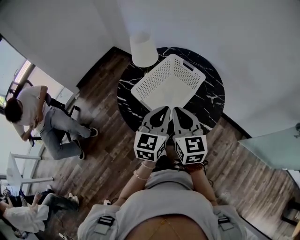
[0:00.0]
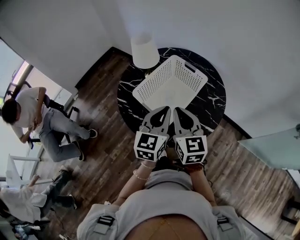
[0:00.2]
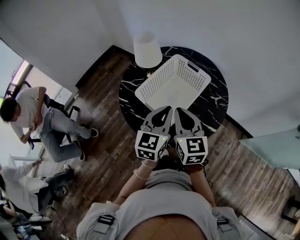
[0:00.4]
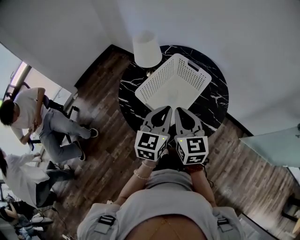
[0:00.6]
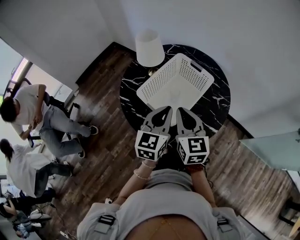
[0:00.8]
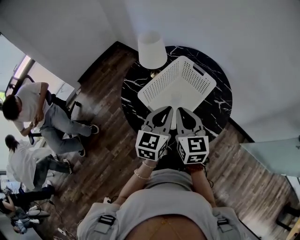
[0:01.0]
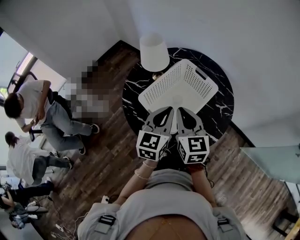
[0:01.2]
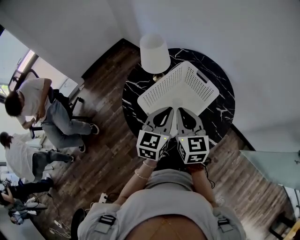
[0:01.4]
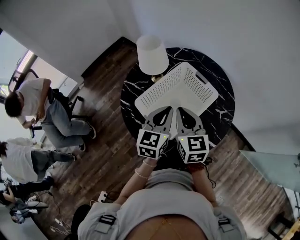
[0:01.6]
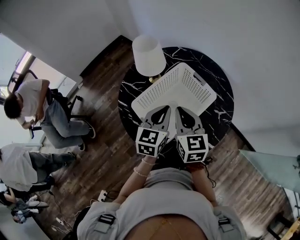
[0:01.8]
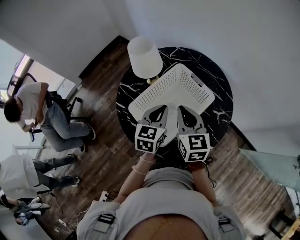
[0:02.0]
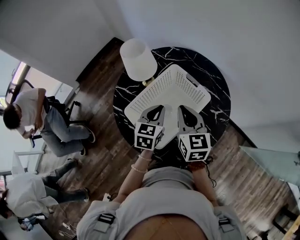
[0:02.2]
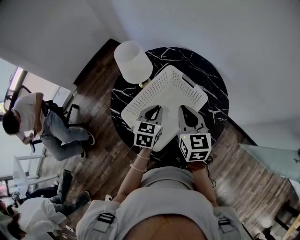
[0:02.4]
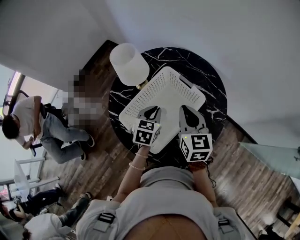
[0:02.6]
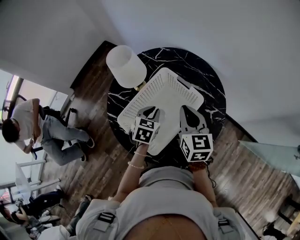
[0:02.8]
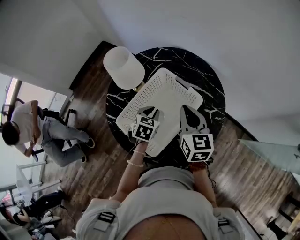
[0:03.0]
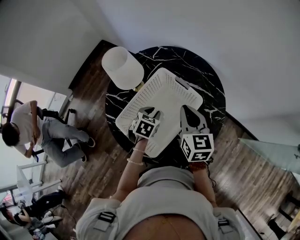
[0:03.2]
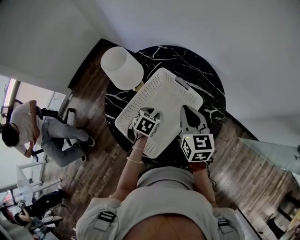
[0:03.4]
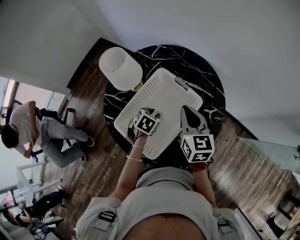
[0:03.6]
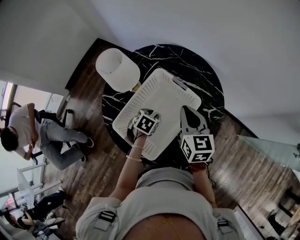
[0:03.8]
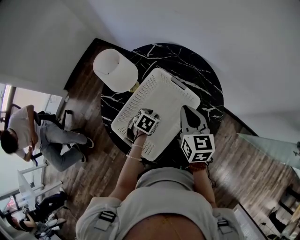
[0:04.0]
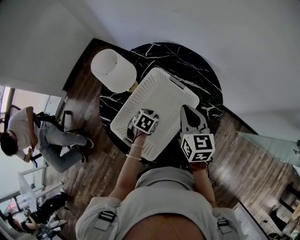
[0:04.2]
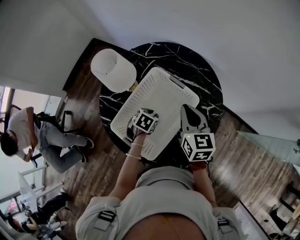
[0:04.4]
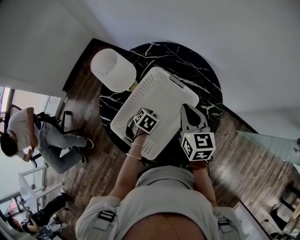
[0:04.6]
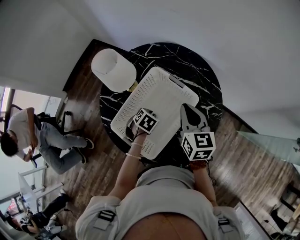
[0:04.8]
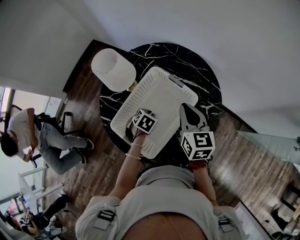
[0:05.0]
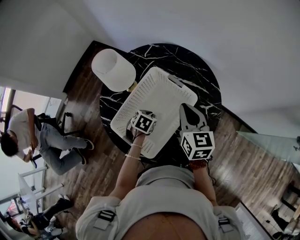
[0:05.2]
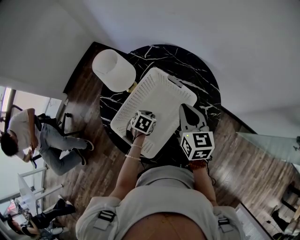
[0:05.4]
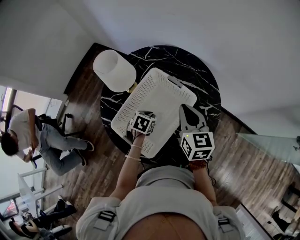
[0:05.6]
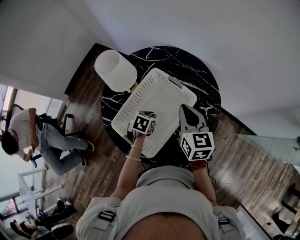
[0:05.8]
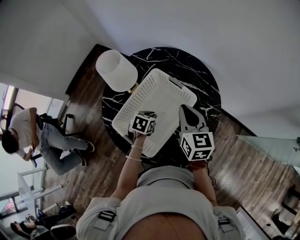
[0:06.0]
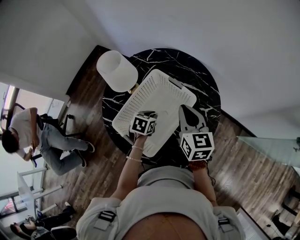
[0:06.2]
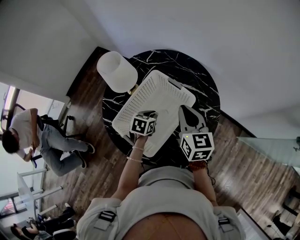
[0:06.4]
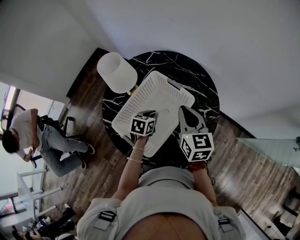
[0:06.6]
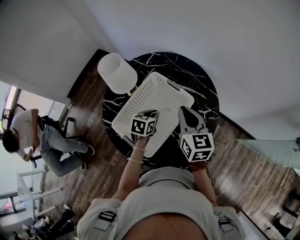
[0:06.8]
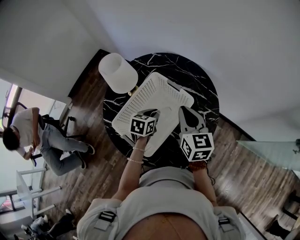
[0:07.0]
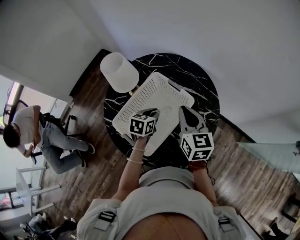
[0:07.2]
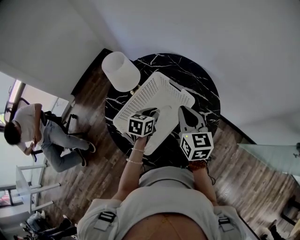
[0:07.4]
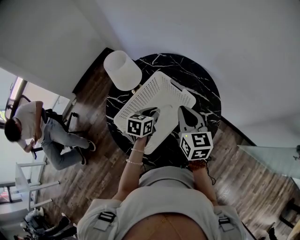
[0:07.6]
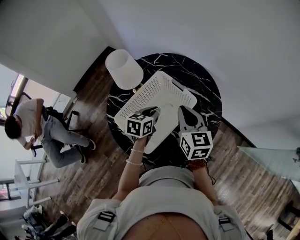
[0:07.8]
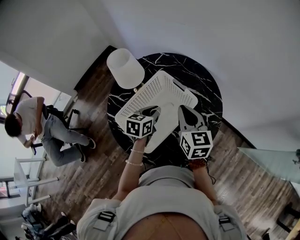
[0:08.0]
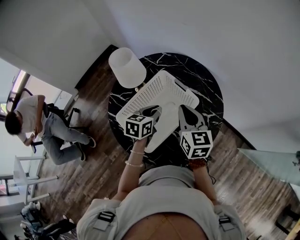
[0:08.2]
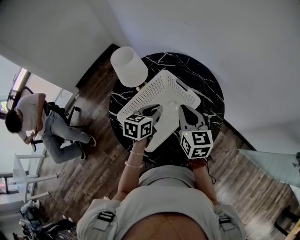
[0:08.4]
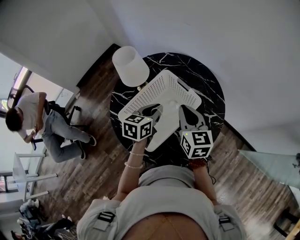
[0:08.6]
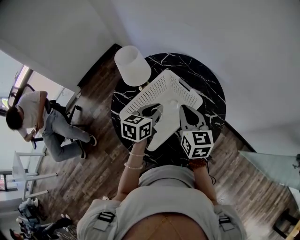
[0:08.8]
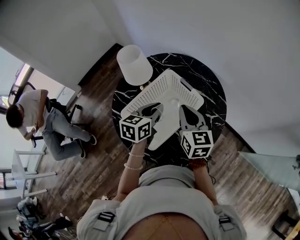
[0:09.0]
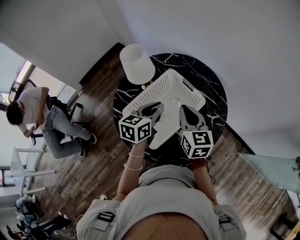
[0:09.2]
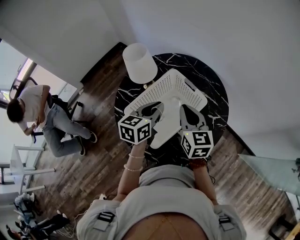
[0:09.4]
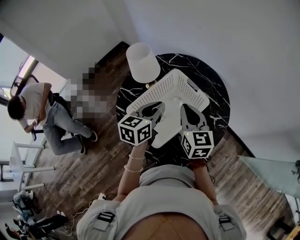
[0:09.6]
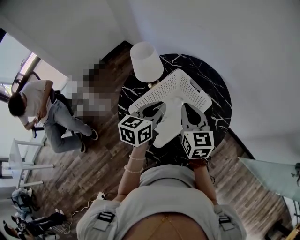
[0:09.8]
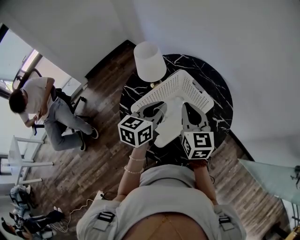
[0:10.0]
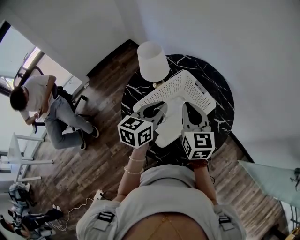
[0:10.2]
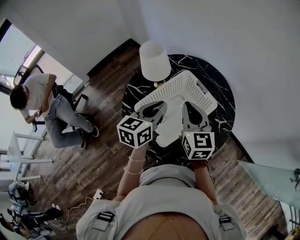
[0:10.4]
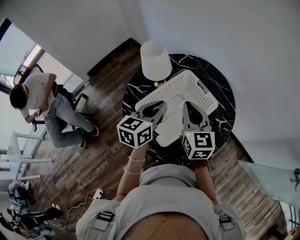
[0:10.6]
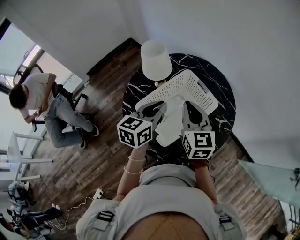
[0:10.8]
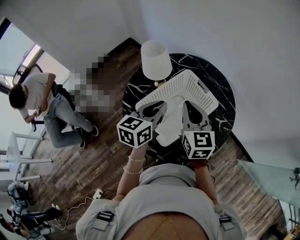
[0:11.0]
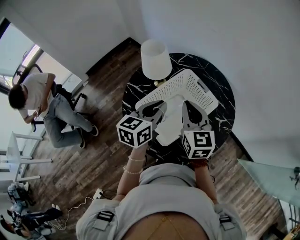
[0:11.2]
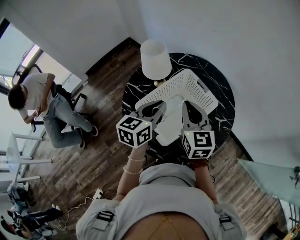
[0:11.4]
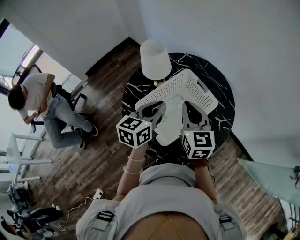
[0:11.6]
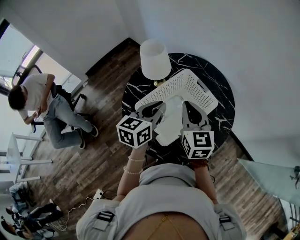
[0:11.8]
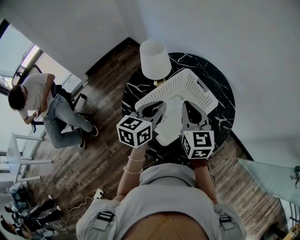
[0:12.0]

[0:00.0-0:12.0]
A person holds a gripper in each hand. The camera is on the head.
0:00.0 to 0:01.6: The grippers both shift forward by roughly 10 cm.
0:01.6 to 0:03.0: The right gripper shifts approximately 15 cm to the right and forward; the left gripper shifts approximately 15 cm downward and forward, and tilts its fingers roughly 30 degrees downward.
0:03.0 to 0:04.4: The left gripper travels downward by about 10 cm, and turns by approximately 20 degrees.
0:04.4 to 0:06.0: The grippers make only small movements.
0:06.0 to 0:07.6: The left gripper goes roughly 10 cm upward, and rotates some 20 degrees.
0:07.6 to 0:09.0: The left gripper goes about 10 cm upward.
0:09.0 to 0:10.4: The left gripper goes approximately 10 cm upward and to the left, while the right gripper shifts some 5 cm to the left.
0:10.4 to 0:12.0: Both grippers stay about where they are.

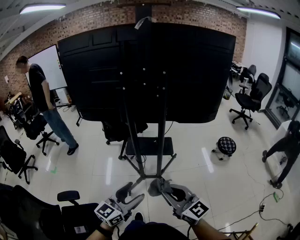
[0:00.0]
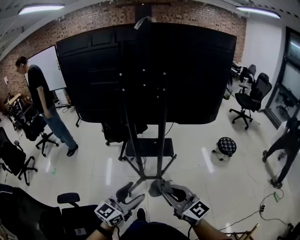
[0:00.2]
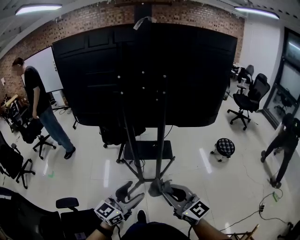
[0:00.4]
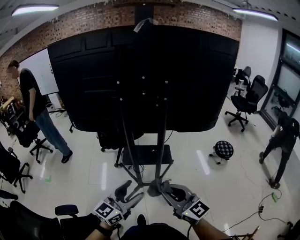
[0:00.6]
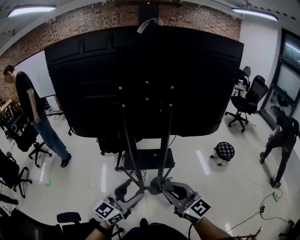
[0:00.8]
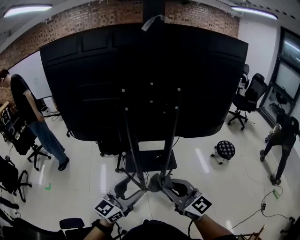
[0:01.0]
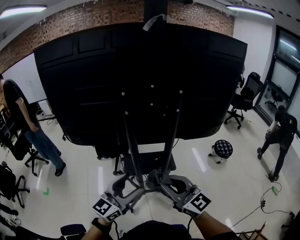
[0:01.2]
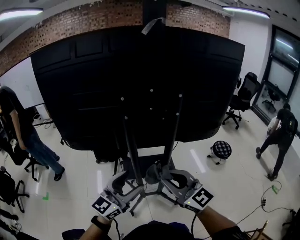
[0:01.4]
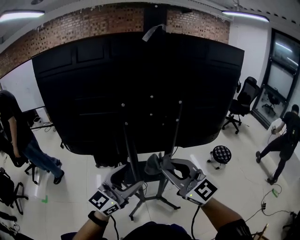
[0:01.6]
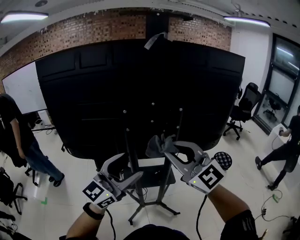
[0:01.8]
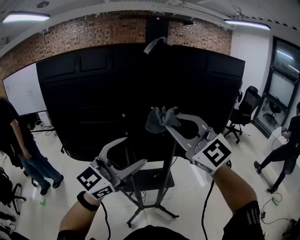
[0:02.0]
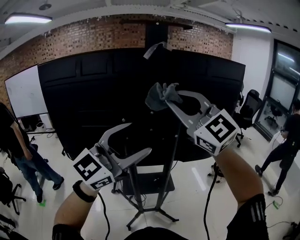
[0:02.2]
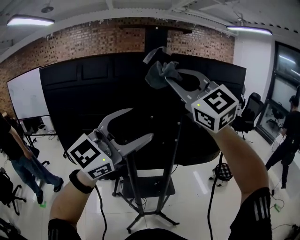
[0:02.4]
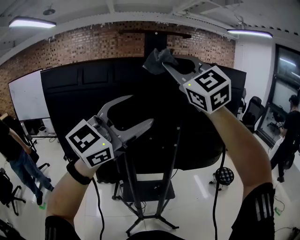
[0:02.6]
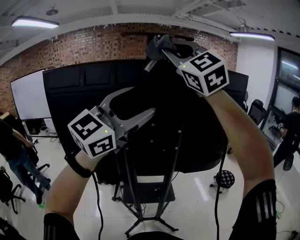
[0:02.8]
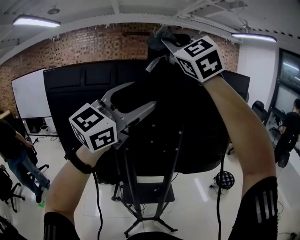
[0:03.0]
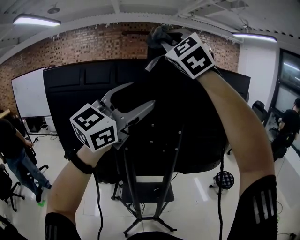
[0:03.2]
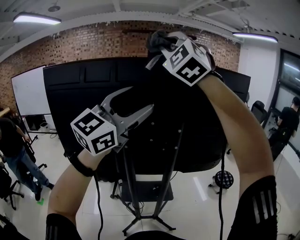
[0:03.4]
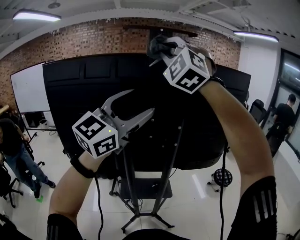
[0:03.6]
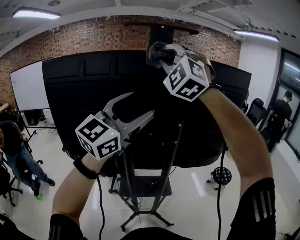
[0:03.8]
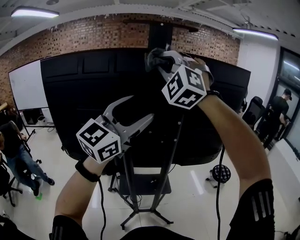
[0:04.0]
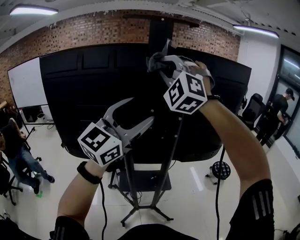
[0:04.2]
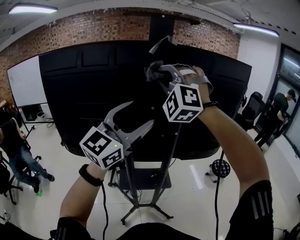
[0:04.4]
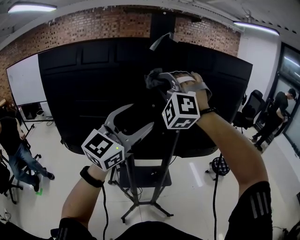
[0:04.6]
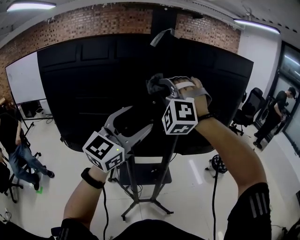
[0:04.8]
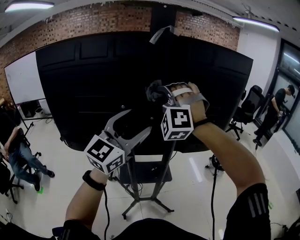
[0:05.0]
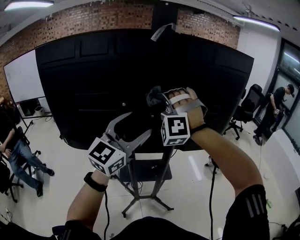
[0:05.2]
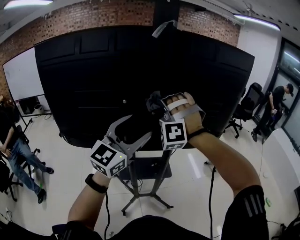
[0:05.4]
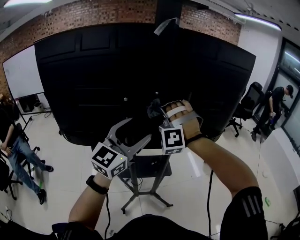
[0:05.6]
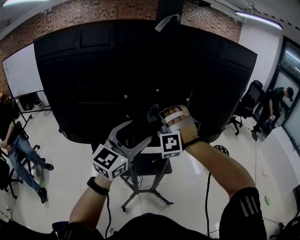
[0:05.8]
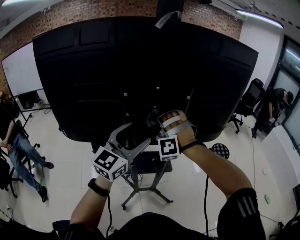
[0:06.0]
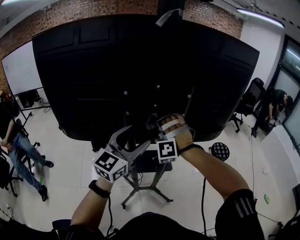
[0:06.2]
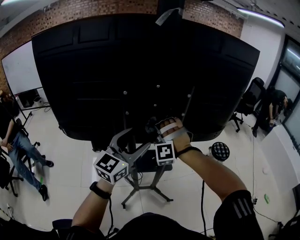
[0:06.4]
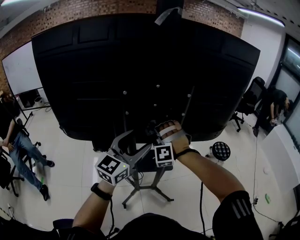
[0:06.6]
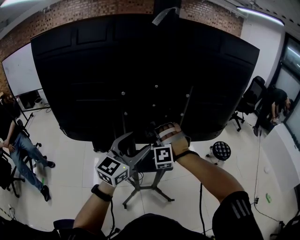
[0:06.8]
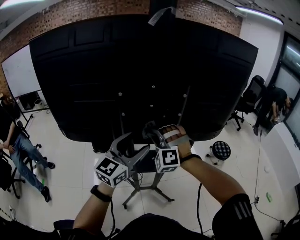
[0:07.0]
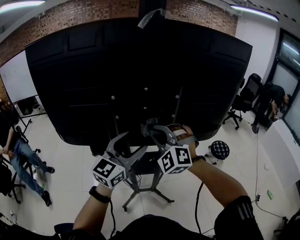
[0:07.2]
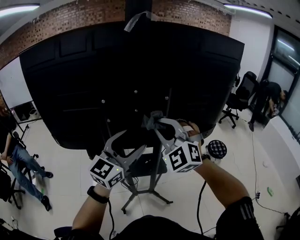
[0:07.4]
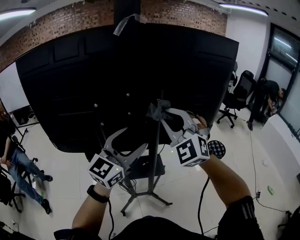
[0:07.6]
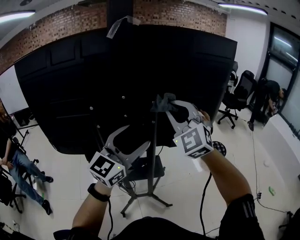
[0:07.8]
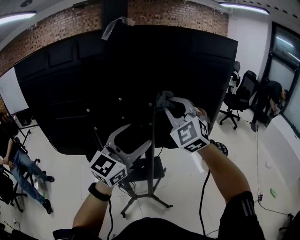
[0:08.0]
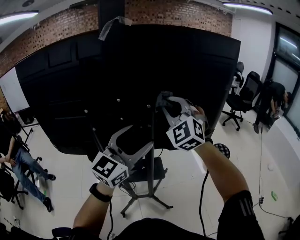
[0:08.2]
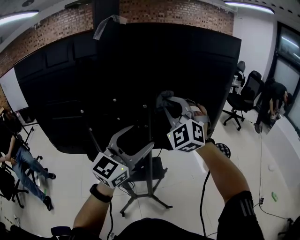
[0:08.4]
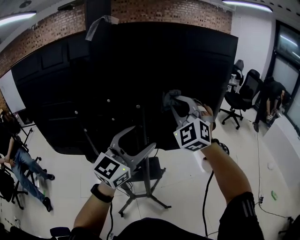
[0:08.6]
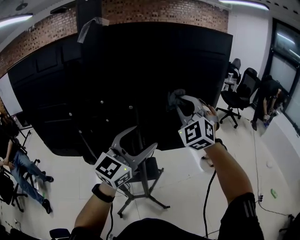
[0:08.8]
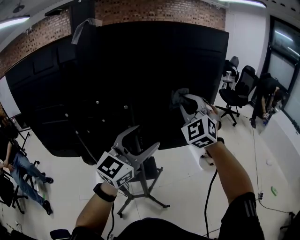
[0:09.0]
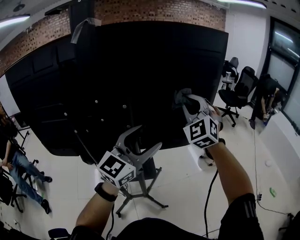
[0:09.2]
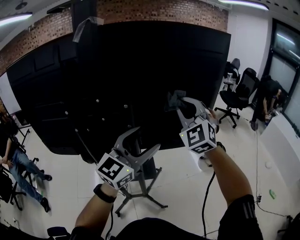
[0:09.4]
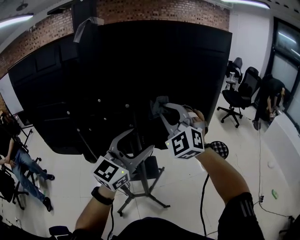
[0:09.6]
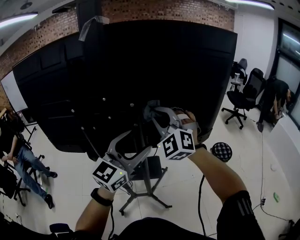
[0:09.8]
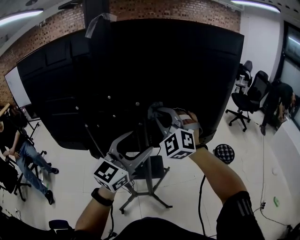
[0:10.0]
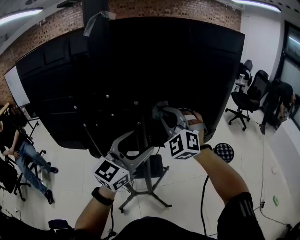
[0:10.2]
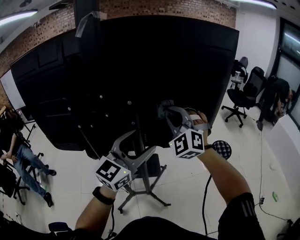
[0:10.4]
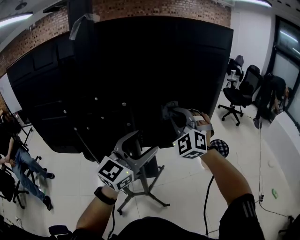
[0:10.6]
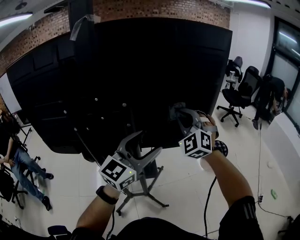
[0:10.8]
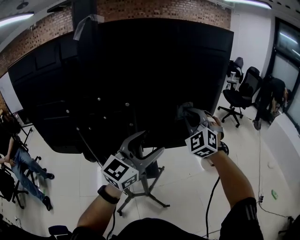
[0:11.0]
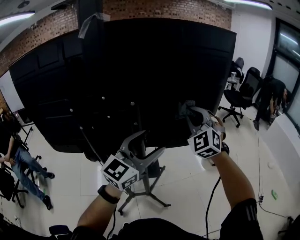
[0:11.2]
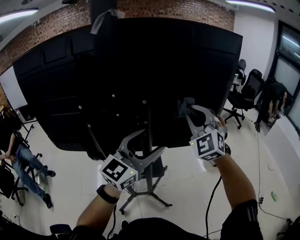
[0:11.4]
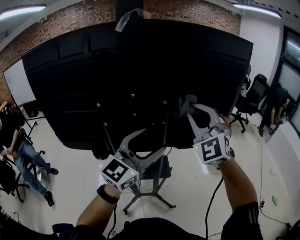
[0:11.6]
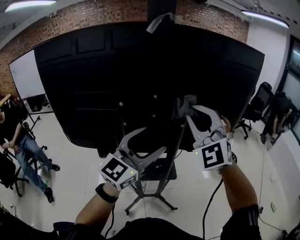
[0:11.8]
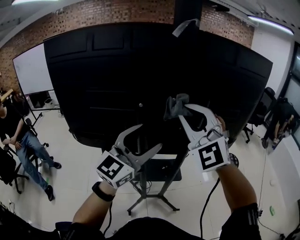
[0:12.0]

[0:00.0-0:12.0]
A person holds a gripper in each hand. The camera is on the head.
0:00.0 to 0:01.6: The two grippers go roughly 30 cm forward and upward. The right gripper rotates about 20 degrees.
0:01.6 to 0:03.0: The left gripper shifts roughly 35 cm upward, and turns by some 20 degrees, while the right gripper shifts roughly 50 cm upward and forward, and rolls counterclockwise, seen from behind, by roughly 40 degrees.
0:03.0 to 0:04.4: The left gripper moves downward, approximately 10 cm. The right gripper is displaced downward by roughly 20 cm, and turns by roughly 40 degrees.
0:04.4 to 0:06.0: The left gripper goes approximately 15 cm downward. Meanwhile the right gripper is displaced downward by some 30 cm, and turns by some 30 degrees.
0:06.0 to 0:07.6: The right gripper shifts roughly 20 cm upward and to the right, and rolls clockwise, seen from behind, by about 50 degrees; the left gripper goes some 10 cm to the right.
0:07.6 to 0:09.0: The two grippers go some 20 cm to the right and forward.
0:09.0 to 0:10.4: The right gripper goes roughly 10 cm to the left and downward.
0:10.4 to 0:12.0: The left gripper moves to the left, approximately 20 cm. The right gripper travels to the left, backward and upward by about 25 cm.
